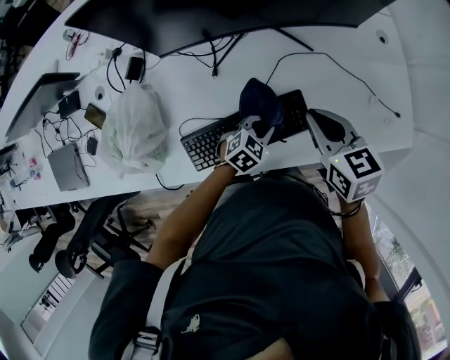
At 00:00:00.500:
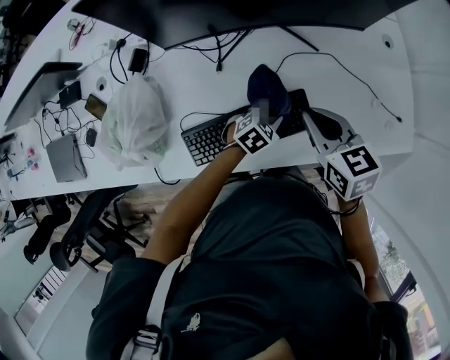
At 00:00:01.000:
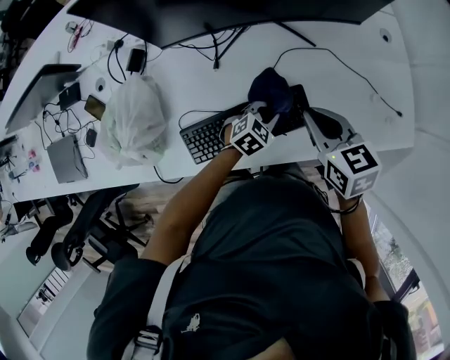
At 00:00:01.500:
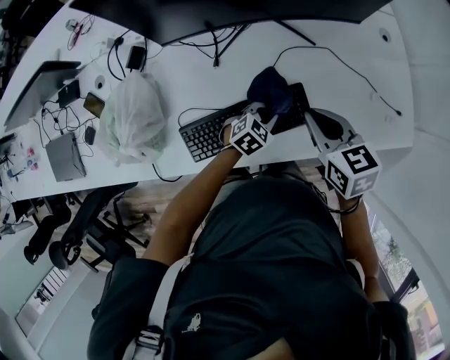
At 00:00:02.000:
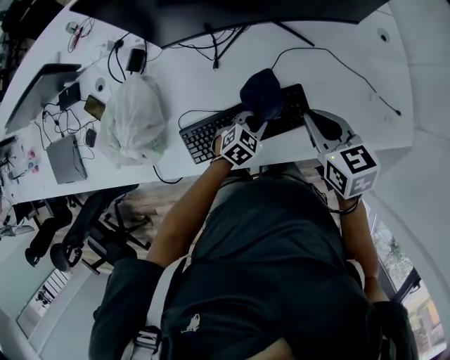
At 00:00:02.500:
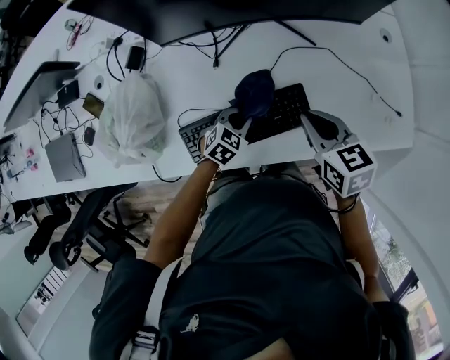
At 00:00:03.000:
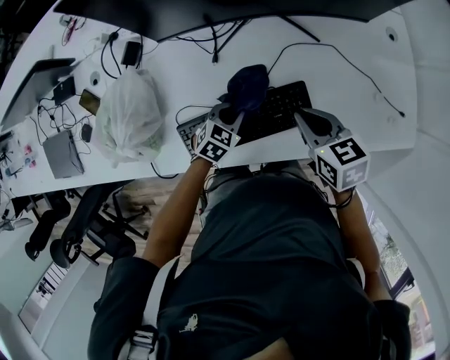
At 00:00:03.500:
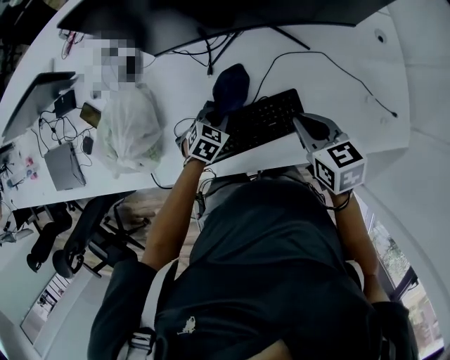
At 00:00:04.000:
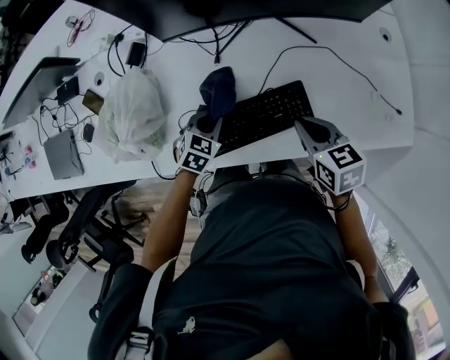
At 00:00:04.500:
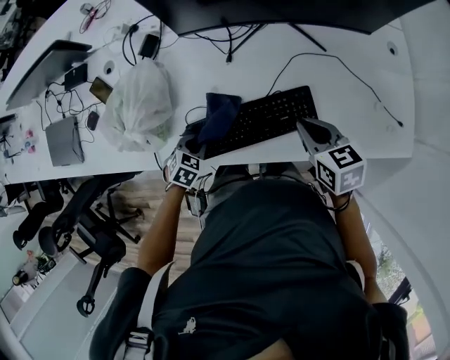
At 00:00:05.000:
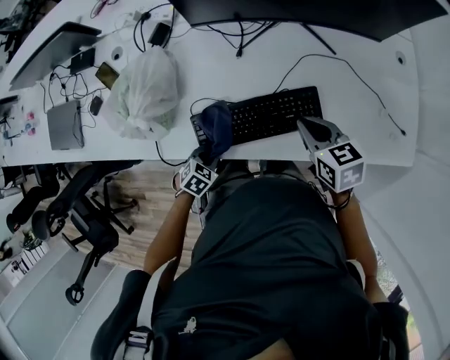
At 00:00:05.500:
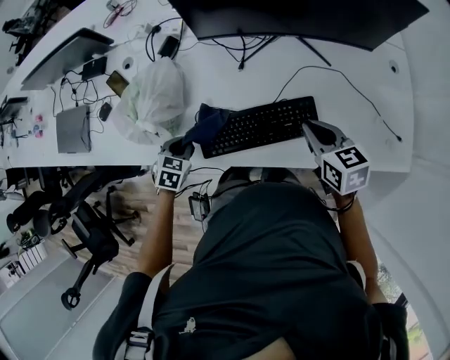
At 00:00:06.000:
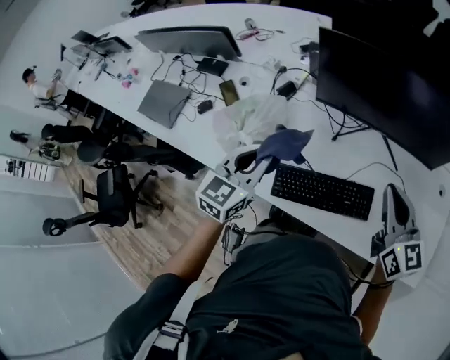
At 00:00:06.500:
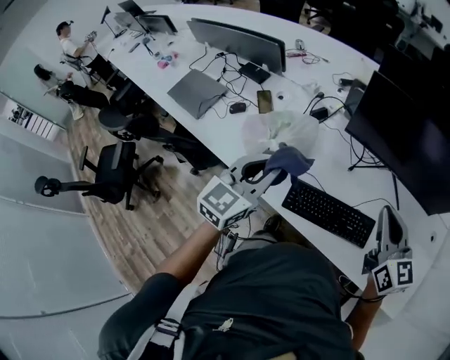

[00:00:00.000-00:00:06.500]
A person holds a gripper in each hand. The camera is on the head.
00:00:00.000 to 00:00:02.000: The grippers move only a little.
00:00:02.000 to 00:00:04.500: The right gripper changes place by roughly 5 cm, while the left gripper heads to the left and backward, covering approximately 25 cm, and turns by about 30 degrees.
00:00:04.500 to 00:00:06.500: The right gripper heads upward, covering roughly 25 cm, and points its fingers some 30 degrees further upward; the left gripper heads upward, covering approximately 40 cm, and points its fingers approximately 50 degrees further upward.

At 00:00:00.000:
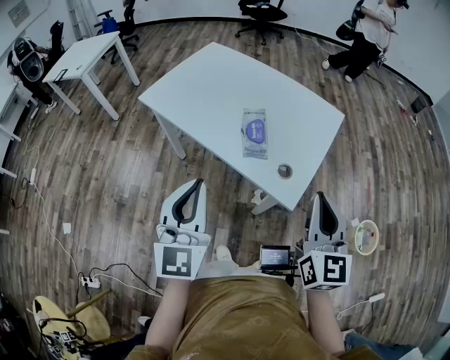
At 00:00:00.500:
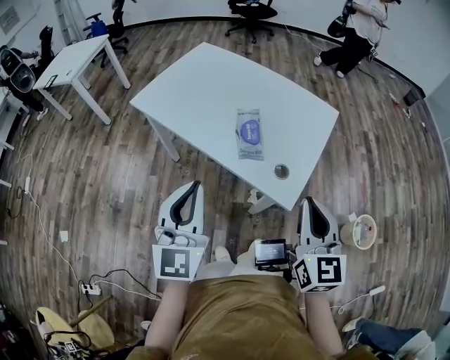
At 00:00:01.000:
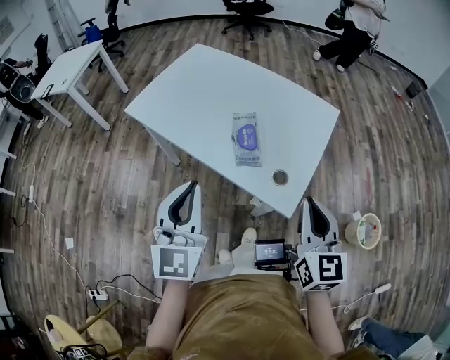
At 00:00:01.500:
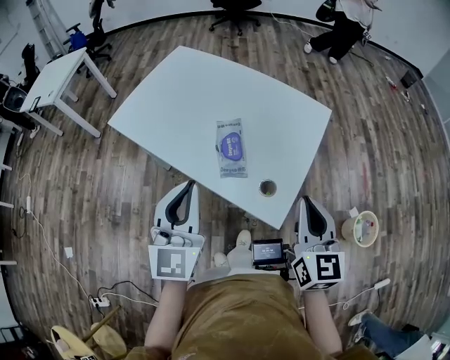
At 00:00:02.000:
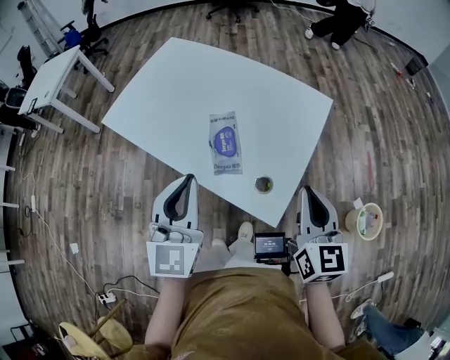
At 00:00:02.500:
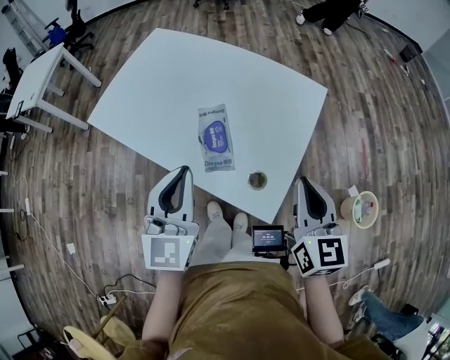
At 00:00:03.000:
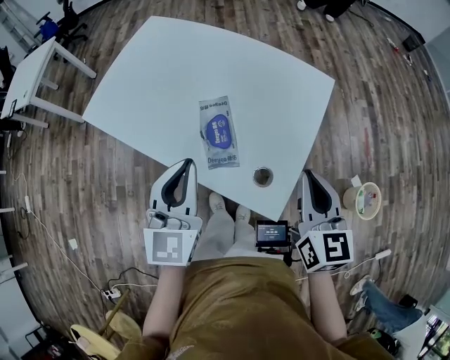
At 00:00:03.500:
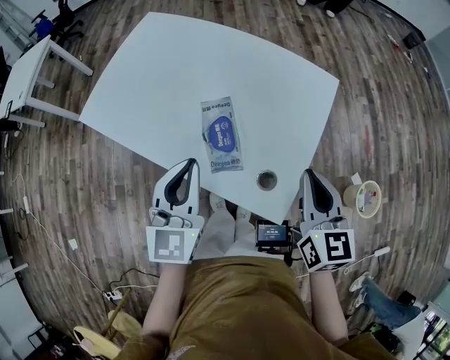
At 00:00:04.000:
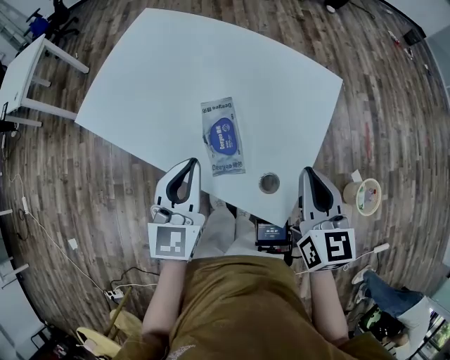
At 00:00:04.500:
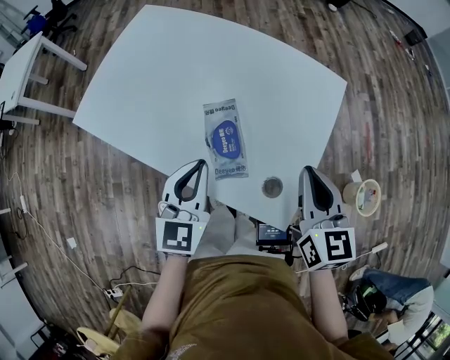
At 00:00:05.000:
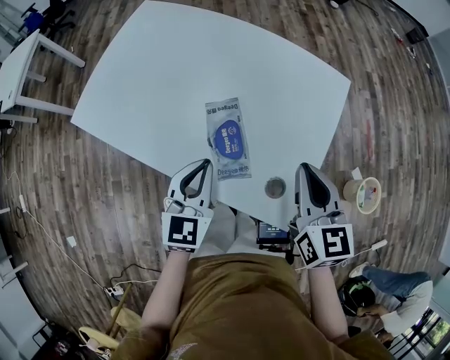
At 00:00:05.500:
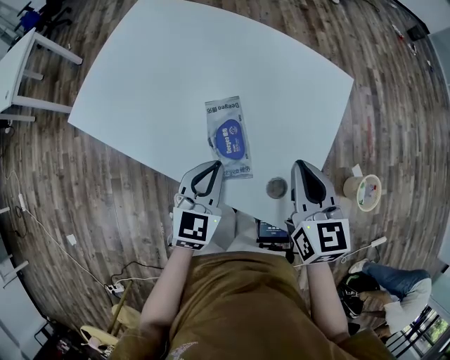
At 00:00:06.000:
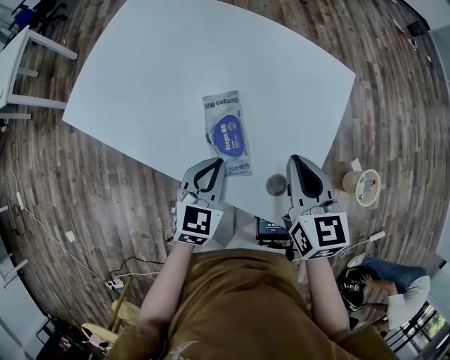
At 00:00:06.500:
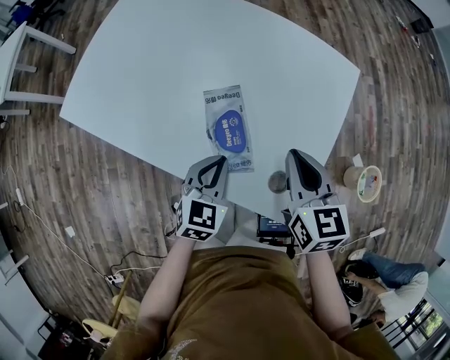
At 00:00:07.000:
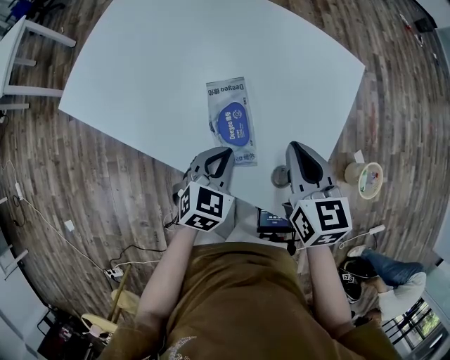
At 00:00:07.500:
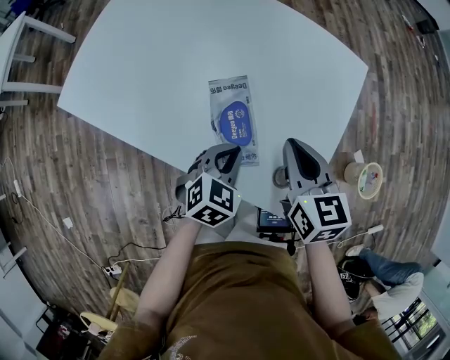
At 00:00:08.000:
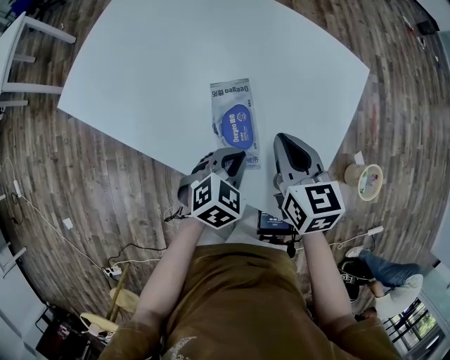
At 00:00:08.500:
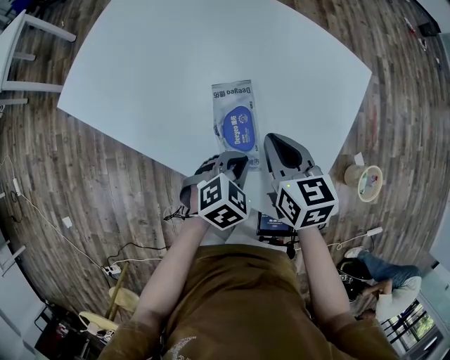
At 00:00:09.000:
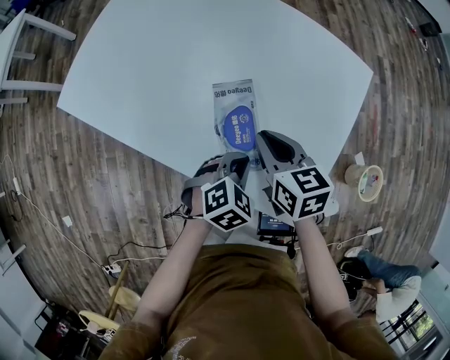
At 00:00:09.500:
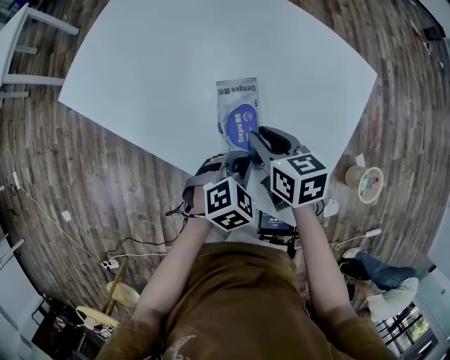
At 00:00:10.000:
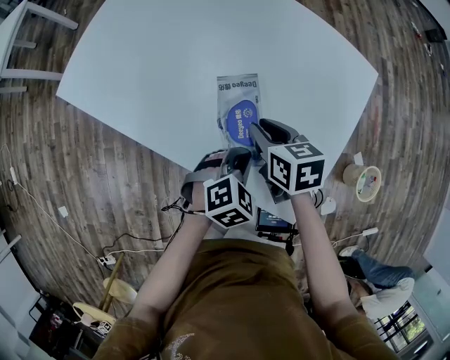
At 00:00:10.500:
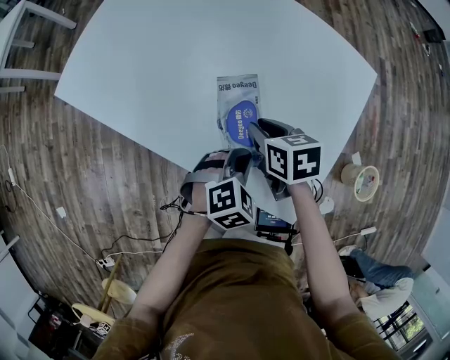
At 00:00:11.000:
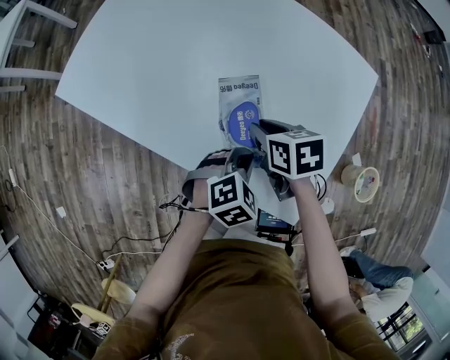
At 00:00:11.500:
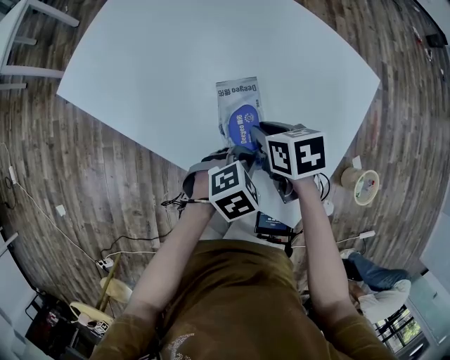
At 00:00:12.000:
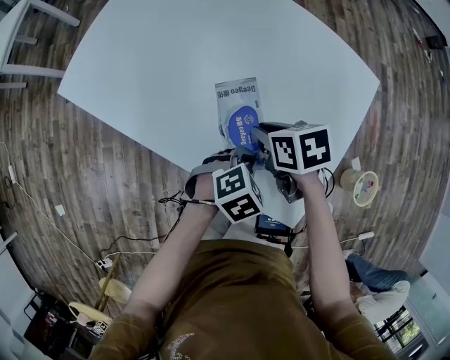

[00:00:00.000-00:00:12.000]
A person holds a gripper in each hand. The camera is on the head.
00:00:00.000 to 00:00:02.000: The right gripper is displaced forward, downward and to the right by roughly 15 cm. The left gripper heads forward and to the right, covering some 15 cm.
00:00:02.000 to 00:00:04.000: The left gripper shifts roughly 15 cm forward and downward; the right gripper moves forward, roughly 10 cm.
00:00:04.000 to 00:00:06.000: The right gripper goes some 10 cm downward and to the left. Meanwhile the left gripper goes approximately 15 cm downward, and turns by about 20 degrees.
00:00:06.000 to 00:00:08.000: The left gripper travels downward by approximately 5 cm, and turns by about 30 degrees. Meanwhile the right gripper goes some 10 cm downward and to the left.
00:00:08.000 to 00:00:10.000: The right gripper is displaced downward and to the left by some 10 cm, and rotates some 20 degrees.
00:00:10.000 to 00:00:12.000: There are only small adjustments of the grippers.

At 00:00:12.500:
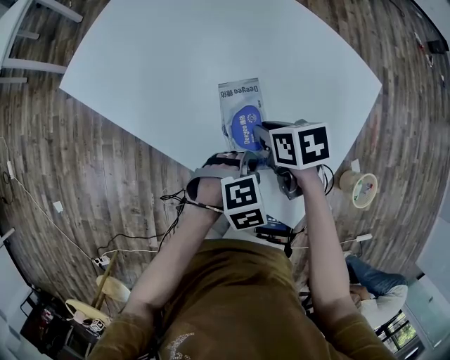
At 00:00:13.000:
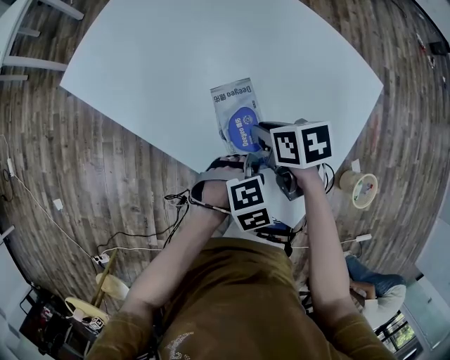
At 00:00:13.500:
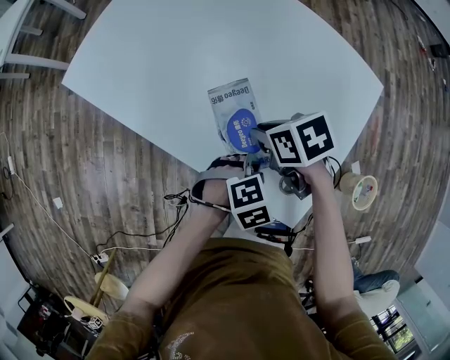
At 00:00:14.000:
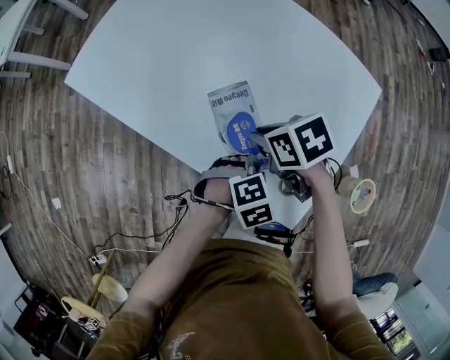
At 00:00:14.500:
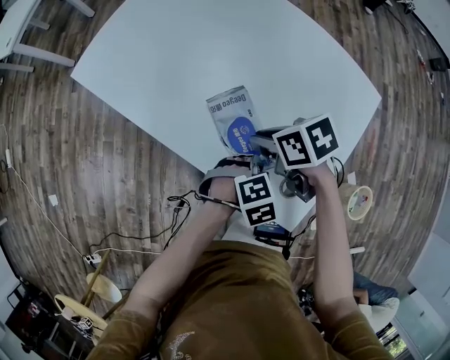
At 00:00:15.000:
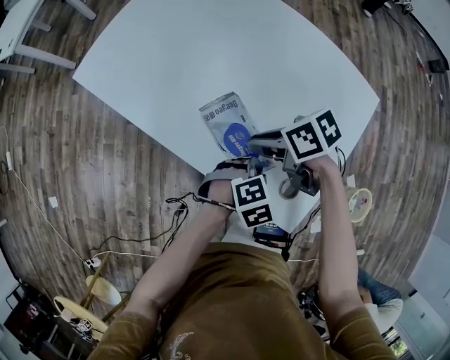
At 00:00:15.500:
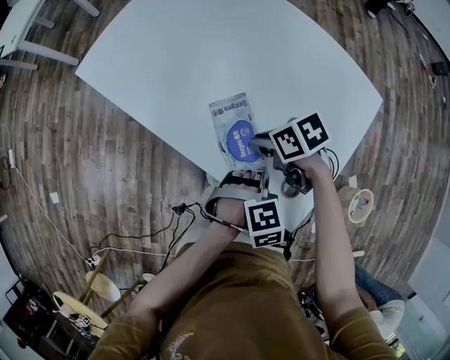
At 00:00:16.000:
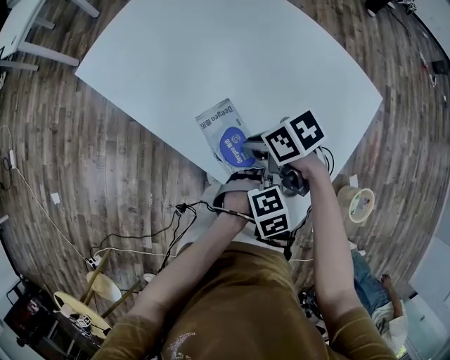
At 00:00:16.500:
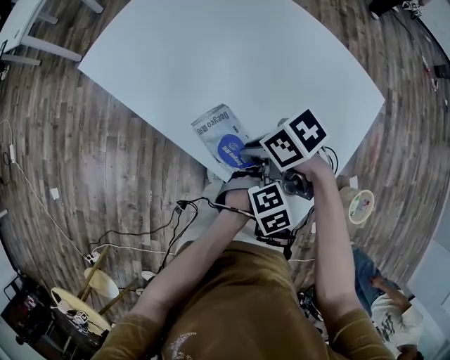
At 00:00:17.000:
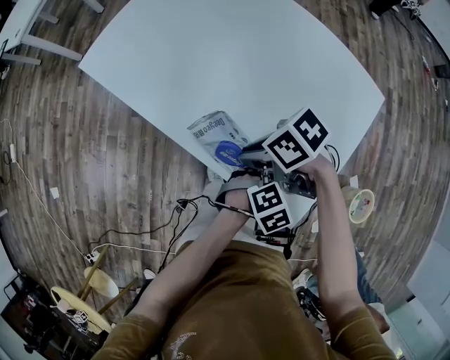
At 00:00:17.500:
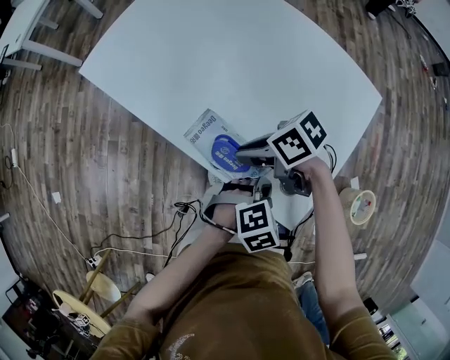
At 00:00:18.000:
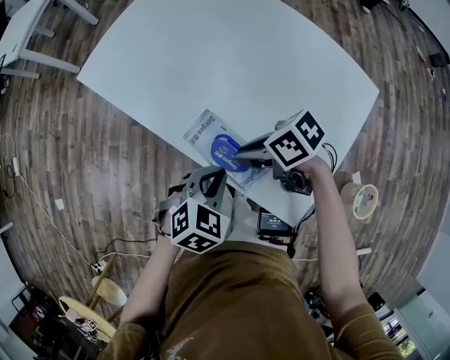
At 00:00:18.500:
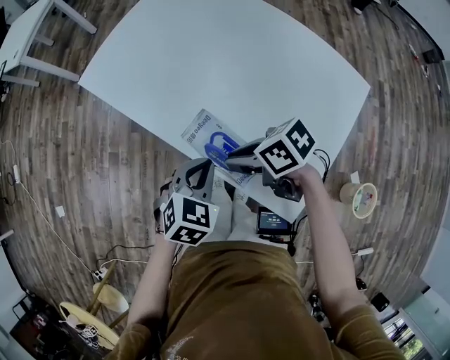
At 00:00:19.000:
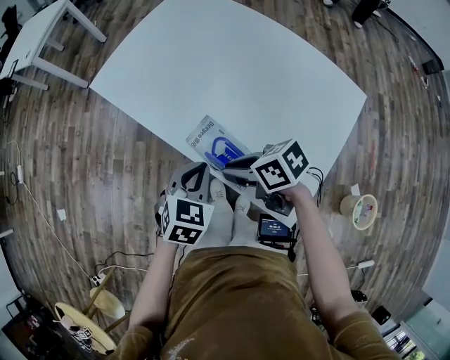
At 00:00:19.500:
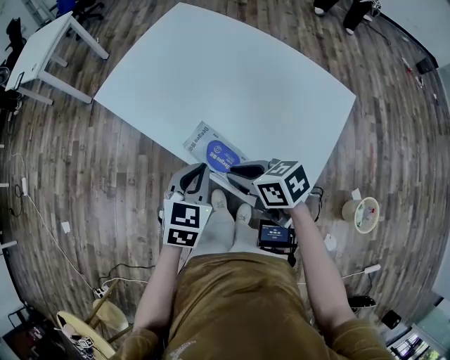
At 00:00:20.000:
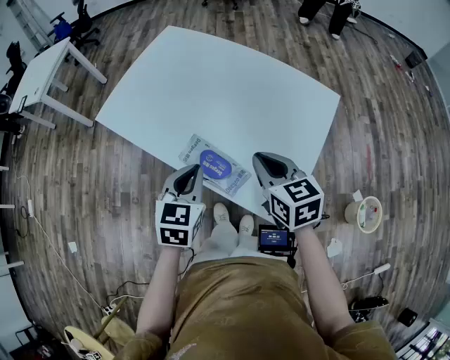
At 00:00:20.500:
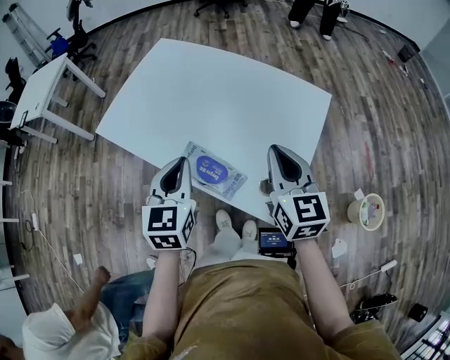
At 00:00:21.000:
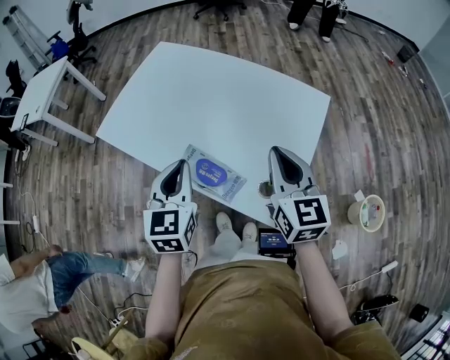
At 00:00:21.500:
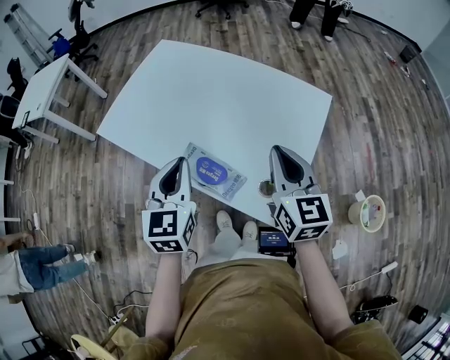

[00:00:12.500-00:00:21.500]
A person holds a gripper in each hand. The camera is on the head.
00:00:12.500 to 00:00:14.500: The right gripper changes place by roughly 5 cm.
00:00:14.500 to 00:00:17.000: The right gripper ends up roughly 5 cm from where it was, and swivels some 20 degrees.
00:00:17.000 to 00:00:19.500: The right gripper changes place by about 5 cm, and turns by about 30 degrees; the left gripper changes place by approximately 20 cm, and changes its angle by about 40 degrees.
00:00:19.500 to 00:00:21.500: The left gripper heads upward, covering approximately 10 cm, and turns by about 20 degrees. Meanwhile the right gripper shifts by about 20 cm, and swivels approximately 60 degrees.
